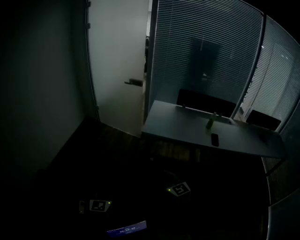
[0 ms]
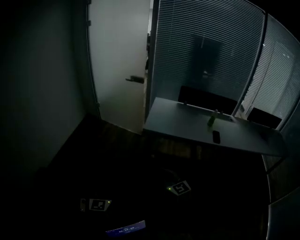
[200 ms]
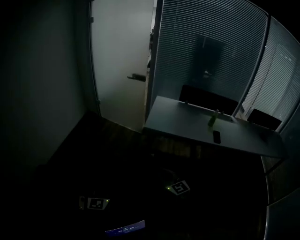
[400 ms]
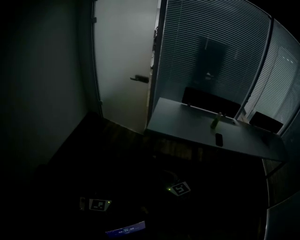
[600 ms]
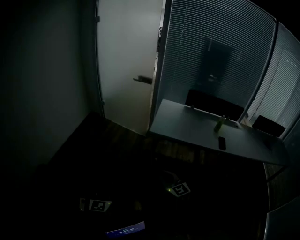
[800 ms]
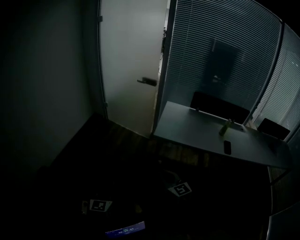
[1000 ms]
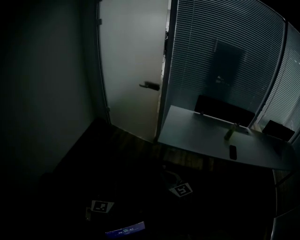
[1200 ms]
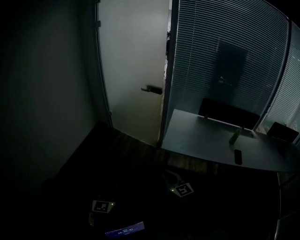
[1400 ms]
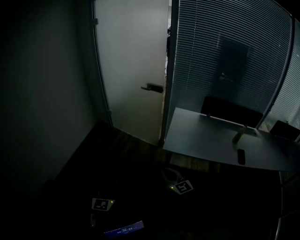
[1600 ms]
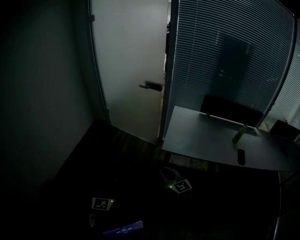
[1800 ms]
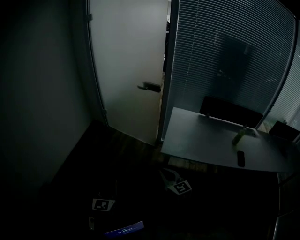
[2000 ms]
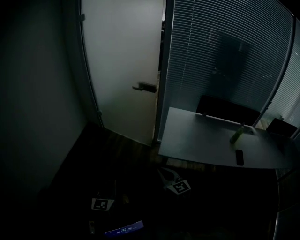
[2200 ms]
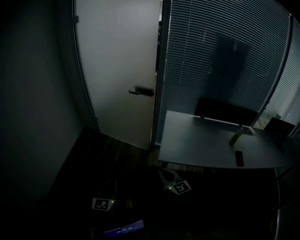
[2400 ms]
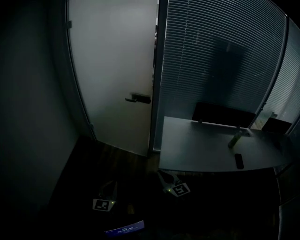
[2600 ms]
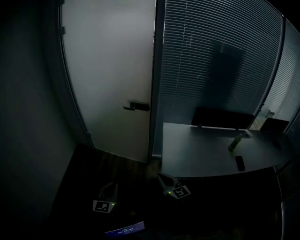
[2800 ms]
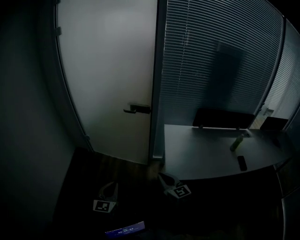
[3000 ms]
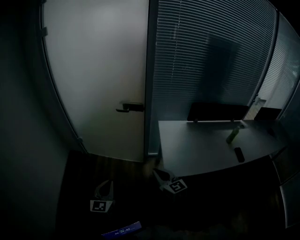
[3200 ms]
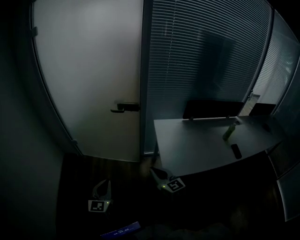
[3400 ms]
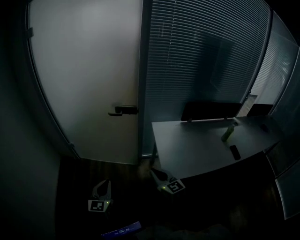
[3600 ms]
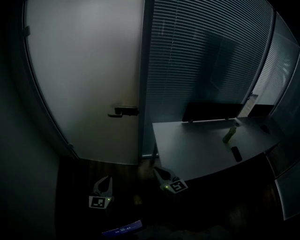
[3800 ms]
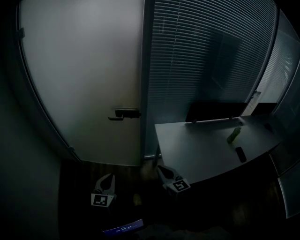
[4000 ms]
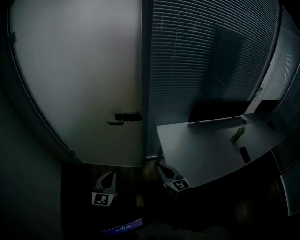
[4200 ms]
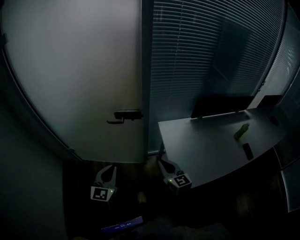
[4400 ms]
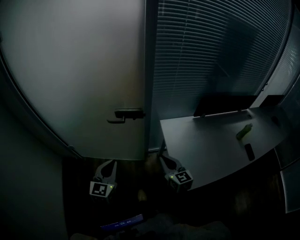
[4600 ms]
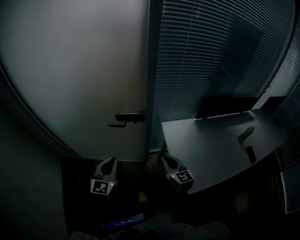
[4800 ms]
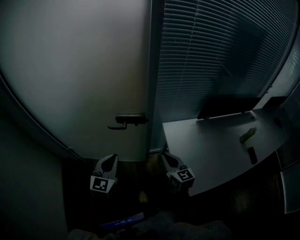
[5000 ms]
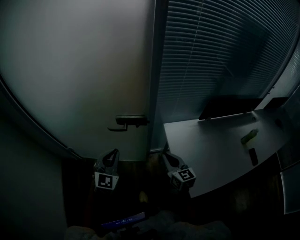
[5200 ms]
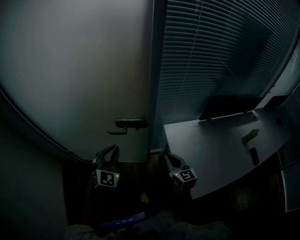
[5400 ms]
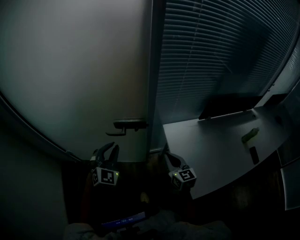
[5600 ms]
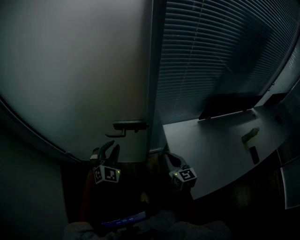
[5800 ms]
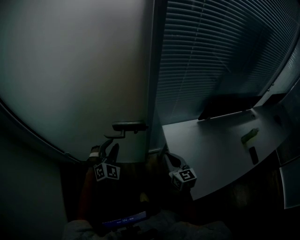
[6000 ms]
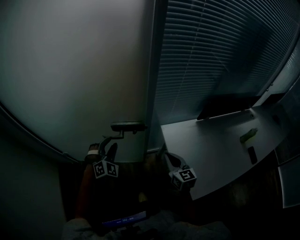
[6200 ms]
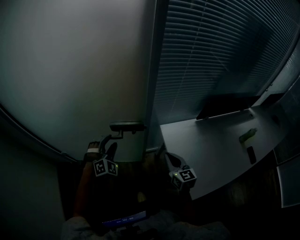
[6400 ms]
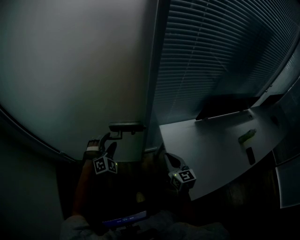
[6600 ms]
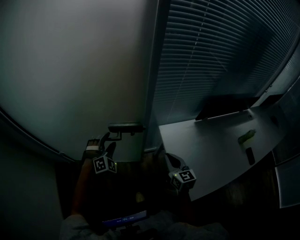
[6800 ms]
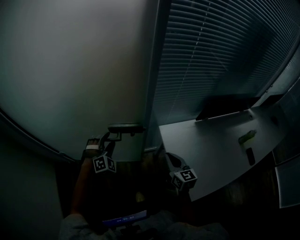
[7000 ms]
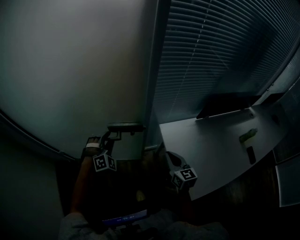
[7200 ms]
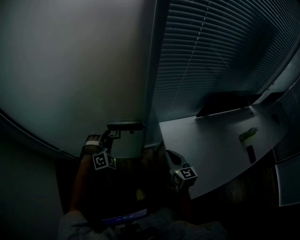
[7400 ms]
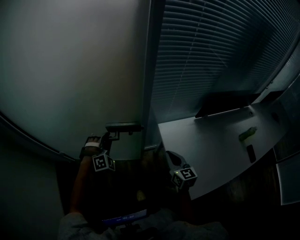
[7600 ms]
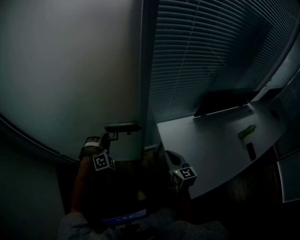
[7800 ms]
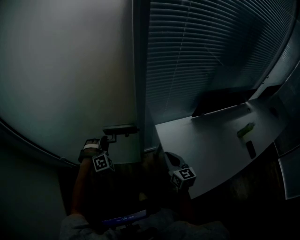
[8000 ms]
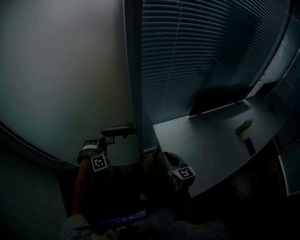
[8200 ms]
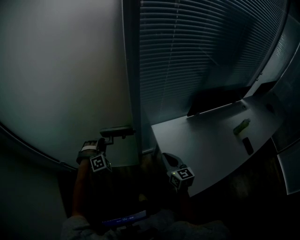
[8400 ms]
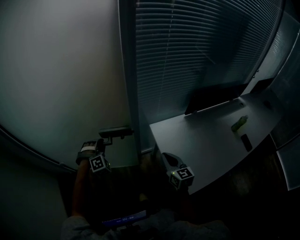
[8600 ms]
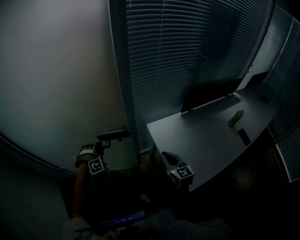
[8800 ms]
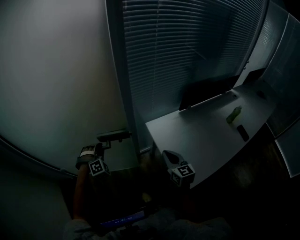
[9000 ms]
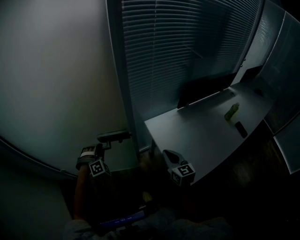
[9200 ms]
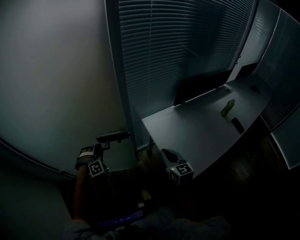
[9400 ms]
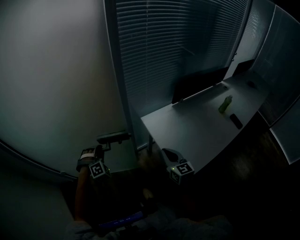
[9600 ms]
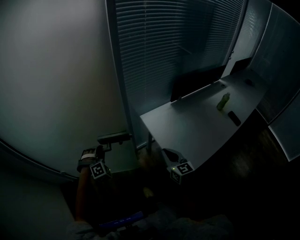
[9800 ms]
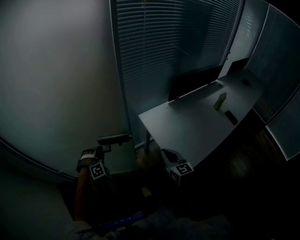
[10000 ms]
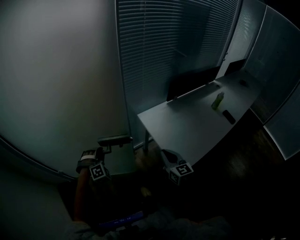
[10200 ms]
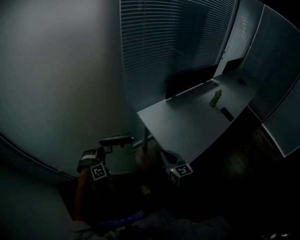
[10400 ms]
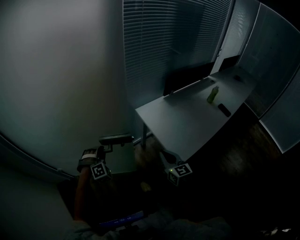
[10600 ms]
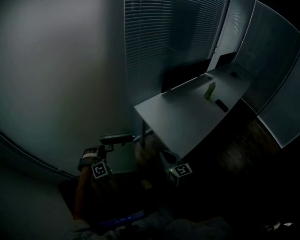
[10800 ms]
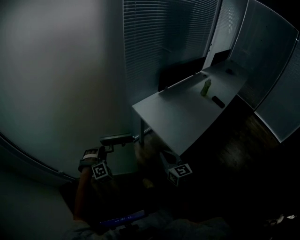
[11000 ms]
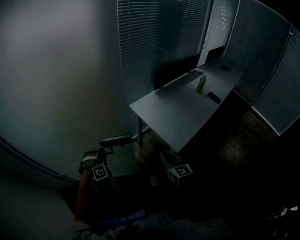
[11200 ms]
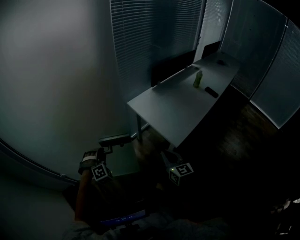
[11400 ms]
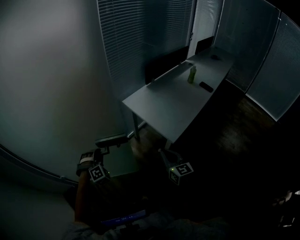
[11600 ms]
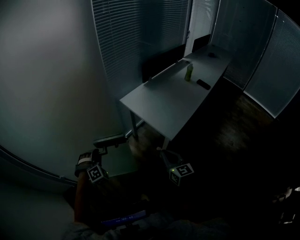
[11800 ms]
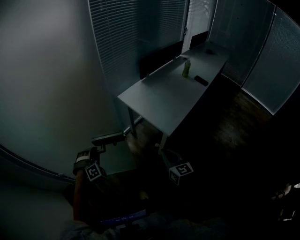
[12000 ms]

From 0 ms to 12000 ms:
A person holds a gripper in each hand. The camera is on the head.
From 0 ms to 1600 ms: Both grippers travel together forward, about 25 cm.
From 1600 ms to 3000 ms: Both grippers move forward, about 30 cm.
From 3000 ms to 4400 ms: Both grippers move forward, approximately 30 cm.
From 4400 ms to 6000 ms: The left gripper goes roughly 25 cm forward, rotates around the line of its fingers by about 50 degrees, clockwise from behind, and opens. The right gripper is displaced forward by about 15 cm.
From 6000 ms to 7600 ms: The left gripper shifts some 10 cm forward and downward, rotates about 20 degrees, and opens, then closes once more.
From 7600 ms to 9000 ms: The right gripper moves backward, some 5 cm.
From 9000 ms to 10400 ms: The grippers both shift backward by approximately 15 cm.
From 10400 ms to 12000 ms: The left gripper travels backward by approximately 15 cm. The right gripper shifts some 20 cm backward.

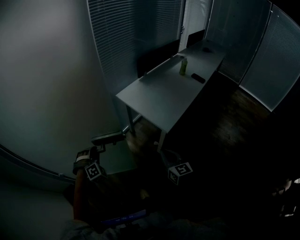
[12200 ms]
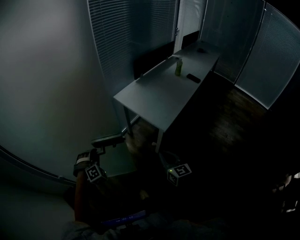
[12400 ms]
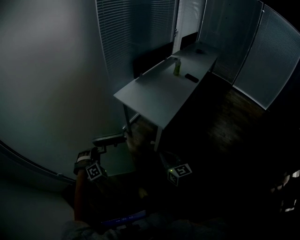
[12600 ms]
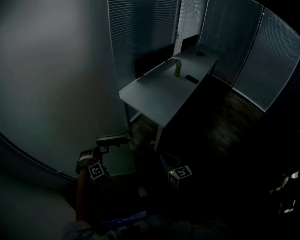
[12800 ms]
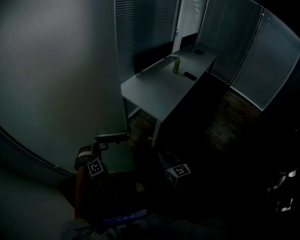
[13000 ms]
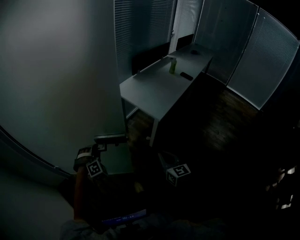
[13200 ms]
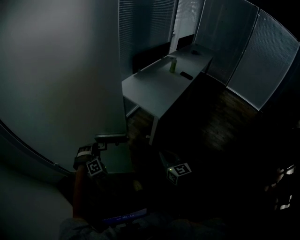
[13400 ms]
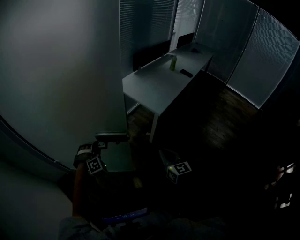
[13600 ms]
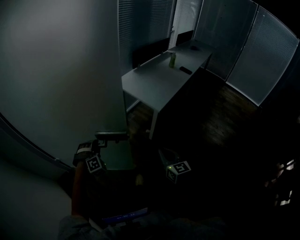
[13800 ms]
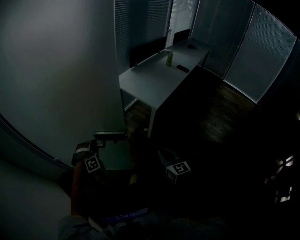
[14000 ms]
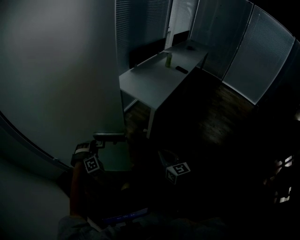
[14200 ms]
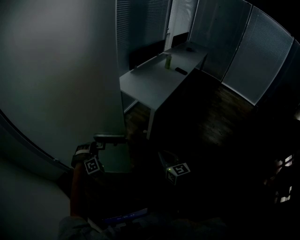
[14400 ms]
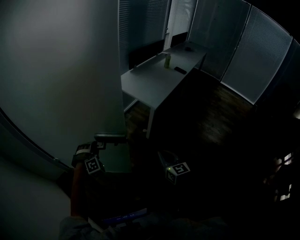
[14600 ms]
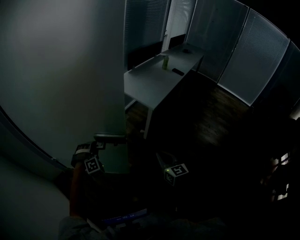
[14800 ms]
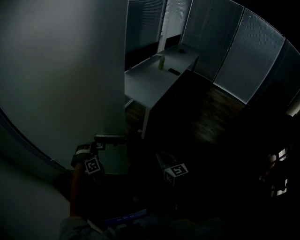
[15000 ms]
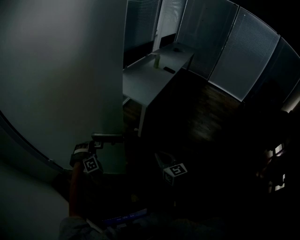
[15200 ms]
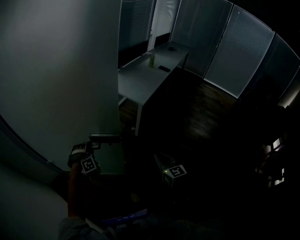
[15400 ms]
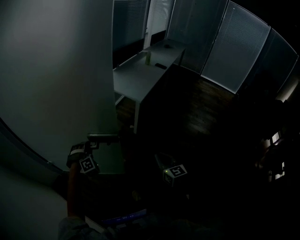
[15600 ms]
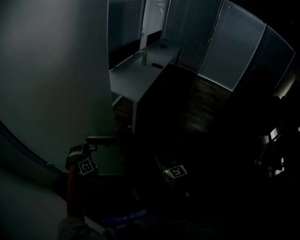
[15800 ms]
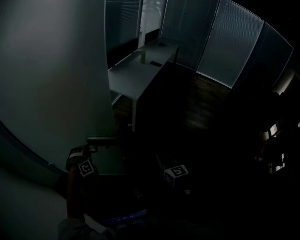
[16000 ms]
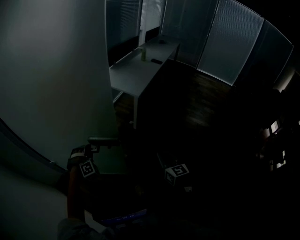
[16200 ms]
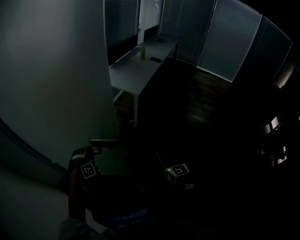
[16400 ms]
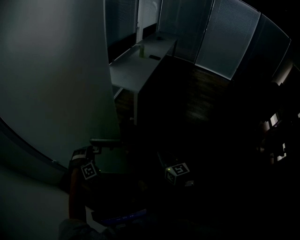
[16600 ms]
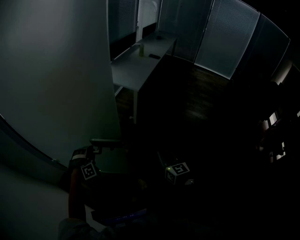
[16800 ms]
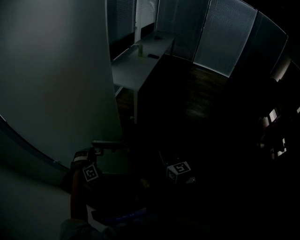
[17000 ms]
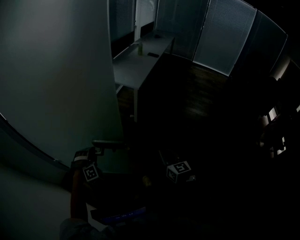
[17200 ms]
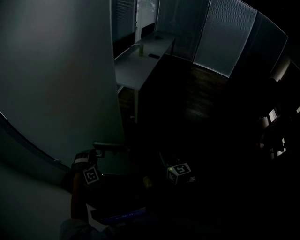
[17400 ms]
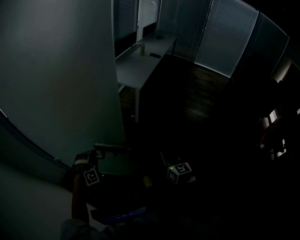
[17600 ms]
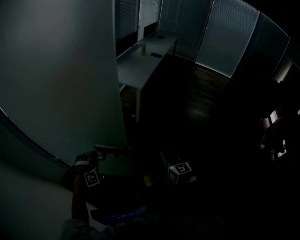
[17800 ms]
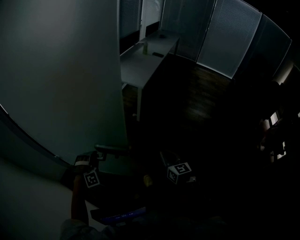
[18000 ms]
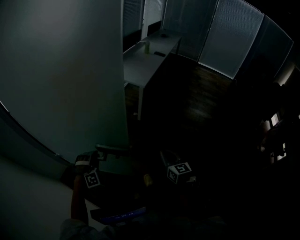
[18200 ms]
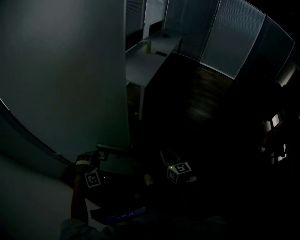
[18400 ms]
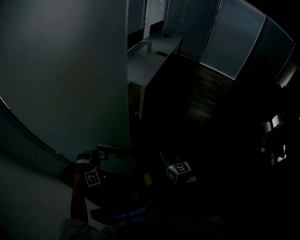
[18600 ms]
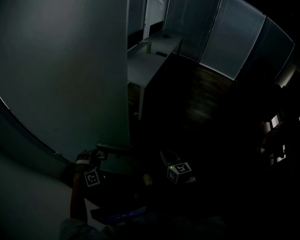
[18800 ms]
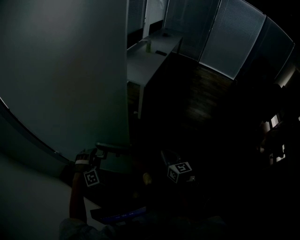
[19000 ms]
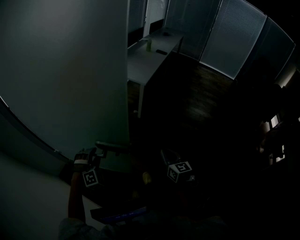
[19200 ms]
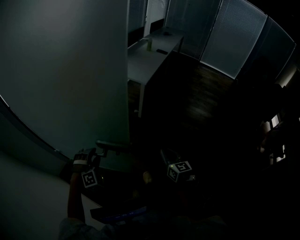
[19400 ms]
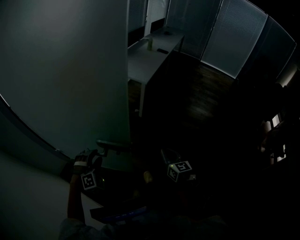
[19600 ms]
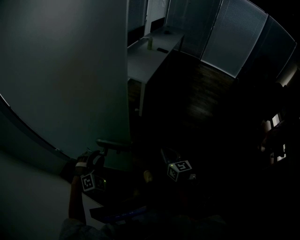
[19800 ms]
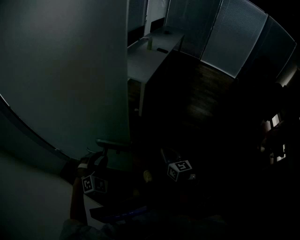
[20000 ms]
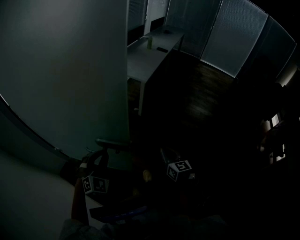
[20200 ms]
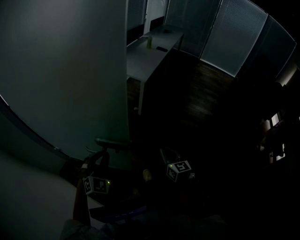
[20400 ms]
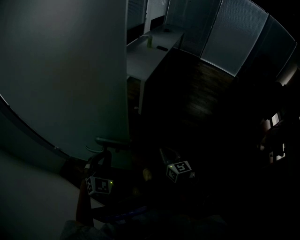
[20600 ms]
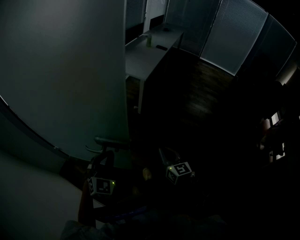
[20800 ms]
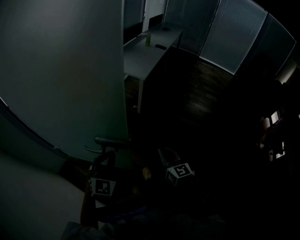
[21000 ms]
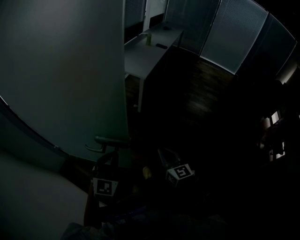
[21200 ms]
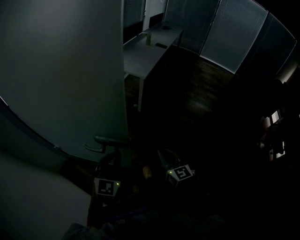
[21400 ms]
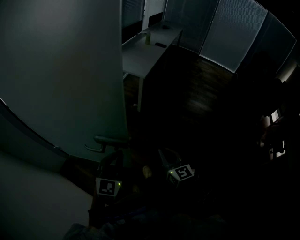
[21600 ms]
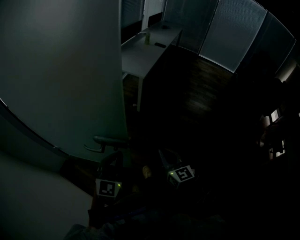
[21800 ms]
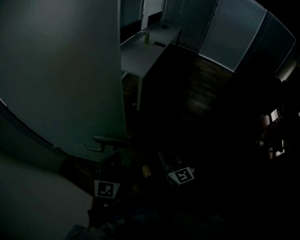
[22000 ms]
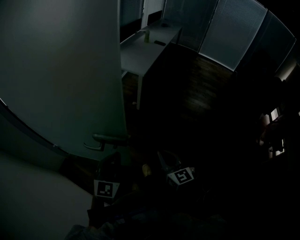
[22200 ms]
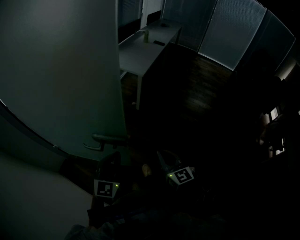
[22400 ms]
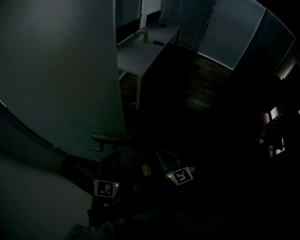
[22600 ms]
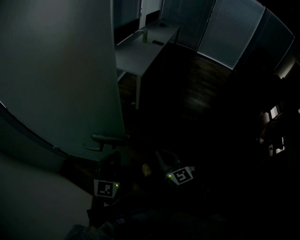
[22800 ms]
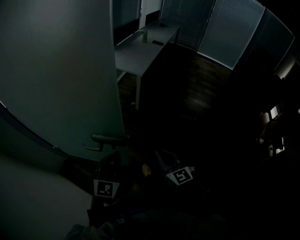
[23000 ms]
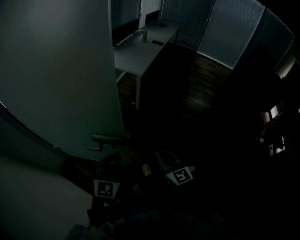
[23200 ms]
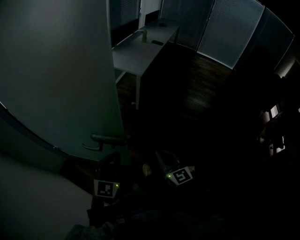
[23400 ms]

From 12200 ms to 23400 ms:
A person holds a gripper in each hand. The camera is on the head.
From 12200 ms to 13800 ms: Both grippers travel together backward, about 20 cm.
From 13800 ms to 15400 ms: The left gripper shifts roughly 10 cm backward; the right gripper shifts approximately 15 cm backward.
From 15400 ms to 17000 ms: The two grippers go some 10 cm backward.
From 17000 ms to 18600 ms: The left gripper is displaced backward by approximately 5 cm.
From 18600 ms to 20200 ms: The left gripper goes roughly 10 cm upward, backward and to the right, swivels roughly 30 degrees, and opens, then closes again.
From 20200 ms to 21800 ms: The left gripper heads to the right and upward, covering approximately 10 cm, and swivels roughly 40 degrees. Meanwhile the right gripper moves upward, some 5 cm.
From 21800 ms to 23400 ms: The grippers make only small movements.

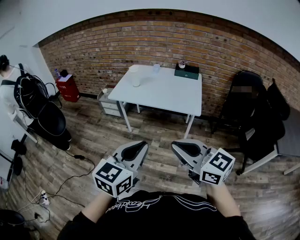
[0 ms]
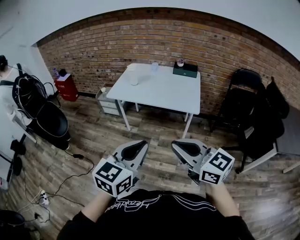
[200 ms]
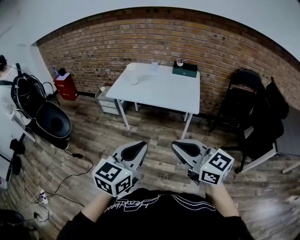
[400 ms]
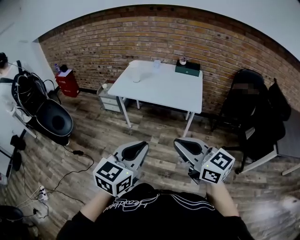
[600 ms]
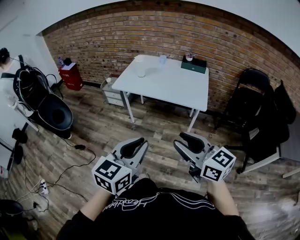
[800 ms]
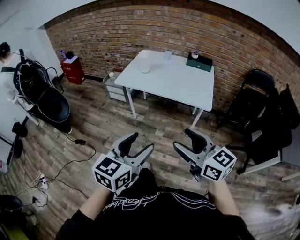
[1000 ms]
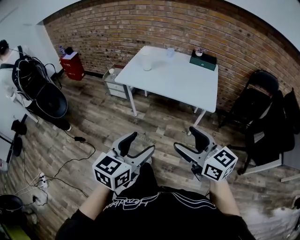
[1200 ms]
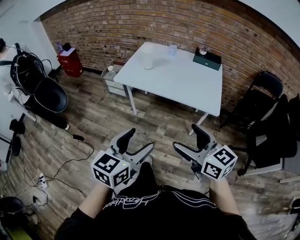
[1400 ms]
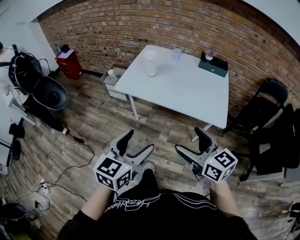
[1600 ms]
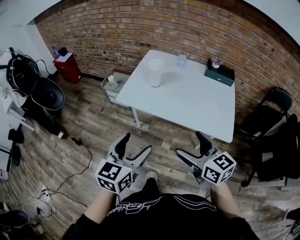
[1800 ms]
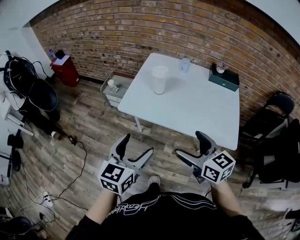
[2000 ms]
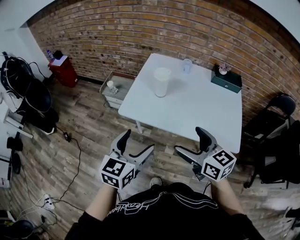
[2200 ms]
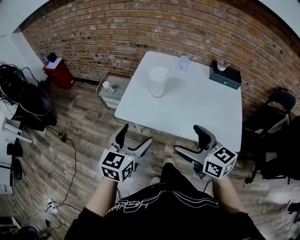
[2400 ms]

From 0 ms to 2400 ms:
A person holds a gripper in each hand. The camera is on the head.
From 0 ms to 1200 ms: The right gripper heads forward and downward, covering some 10 cm, and opens. The left gripper is displaced downward and forward by approximately 10 cm, and opens.
From 1200 ms to 2400 ms: Both grippers move forward, some 40 cm.
